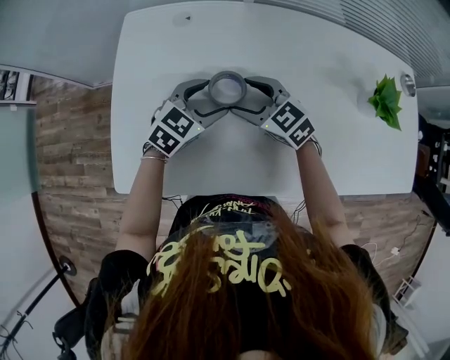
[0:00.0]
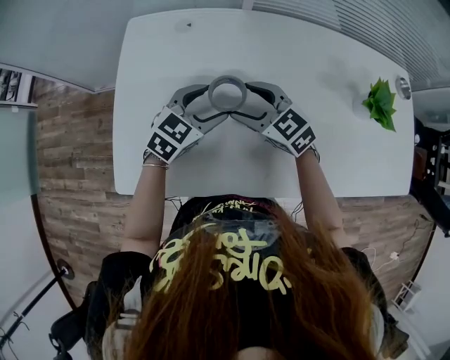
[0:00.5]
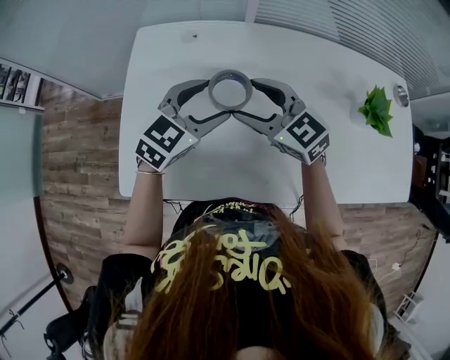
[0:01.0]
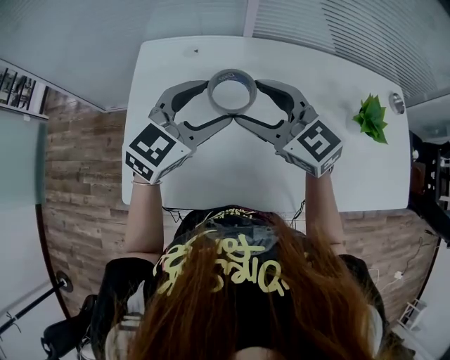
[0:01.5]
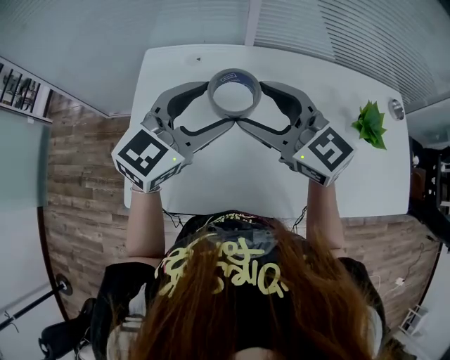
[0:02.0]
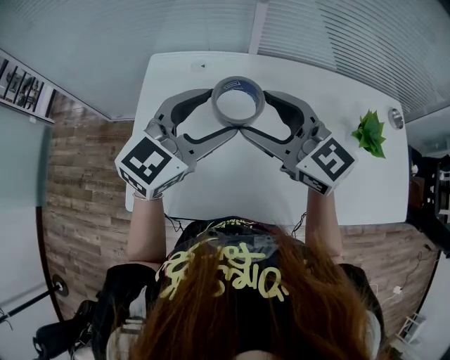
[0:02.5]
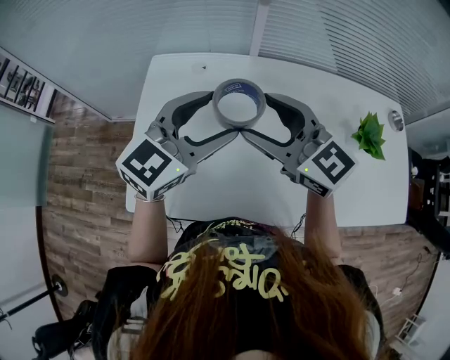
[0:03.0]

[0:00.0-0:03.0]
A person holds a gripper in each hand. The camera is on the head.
0:00.0 to 0:01.5: The two grippers go approximately 20 cm upward.
0:01.5 to 0:03.0: The two grippers go approximately 5 cm upward.

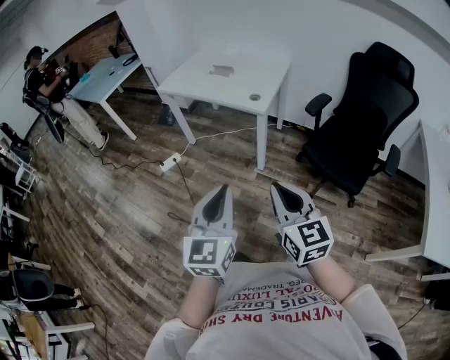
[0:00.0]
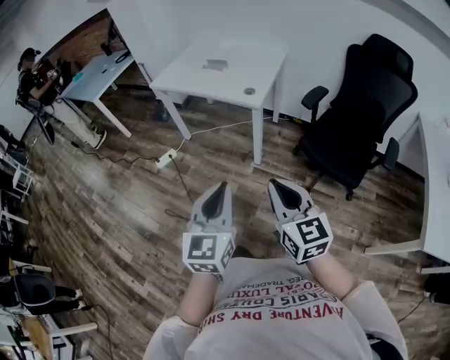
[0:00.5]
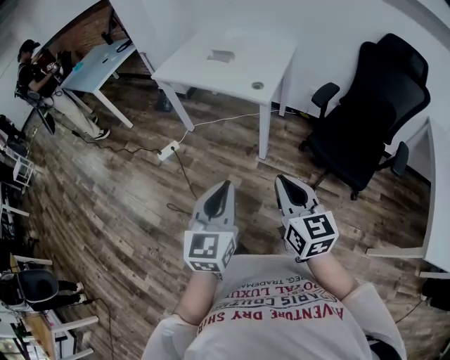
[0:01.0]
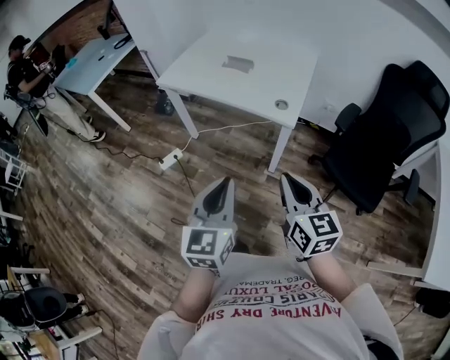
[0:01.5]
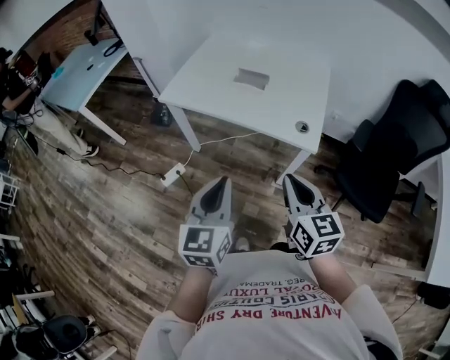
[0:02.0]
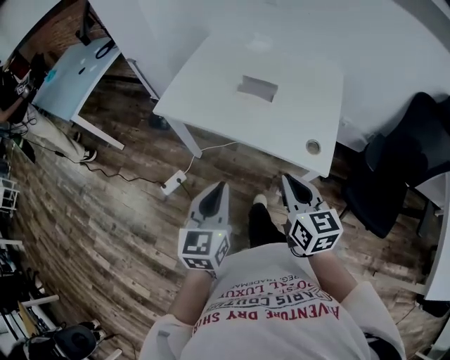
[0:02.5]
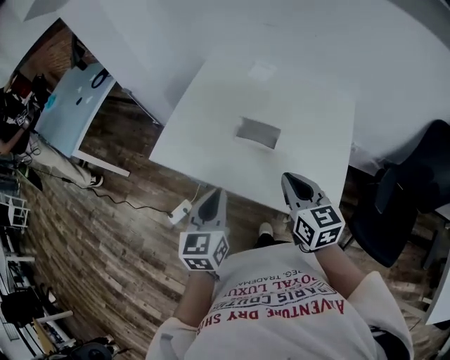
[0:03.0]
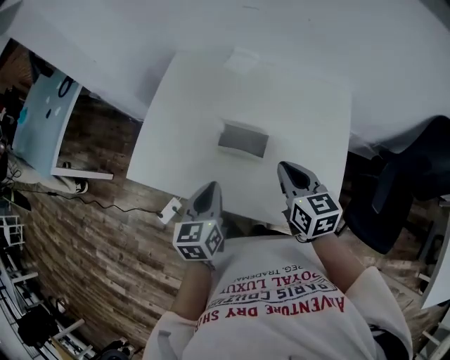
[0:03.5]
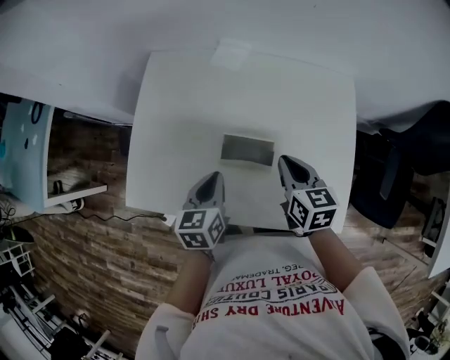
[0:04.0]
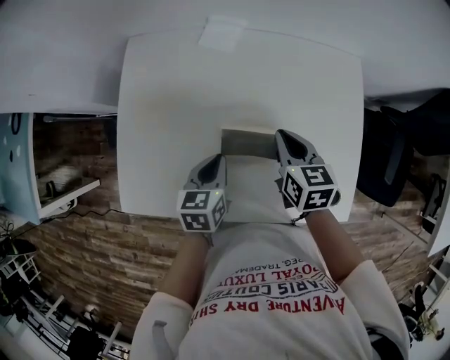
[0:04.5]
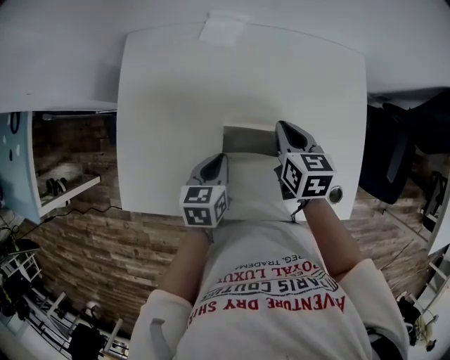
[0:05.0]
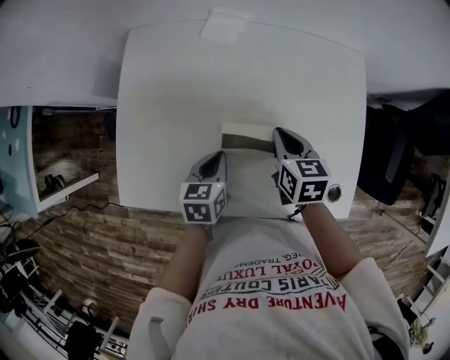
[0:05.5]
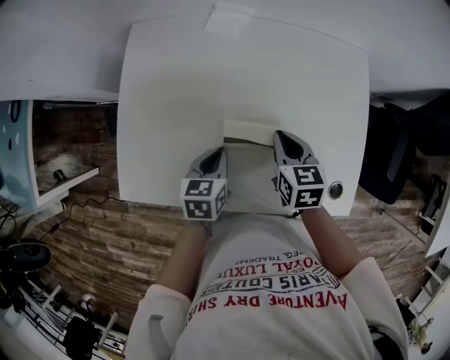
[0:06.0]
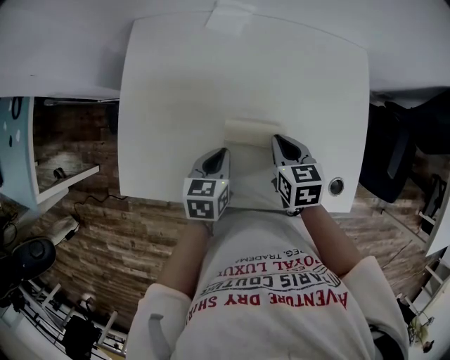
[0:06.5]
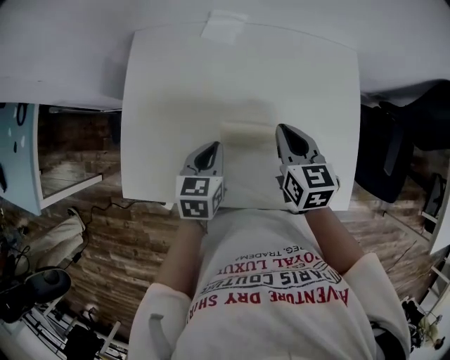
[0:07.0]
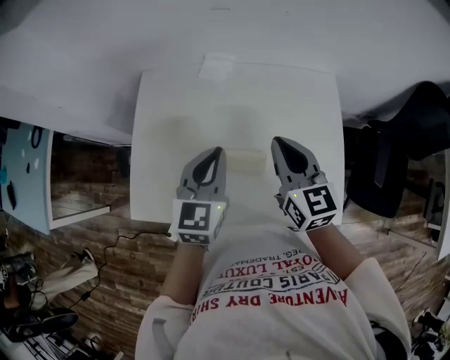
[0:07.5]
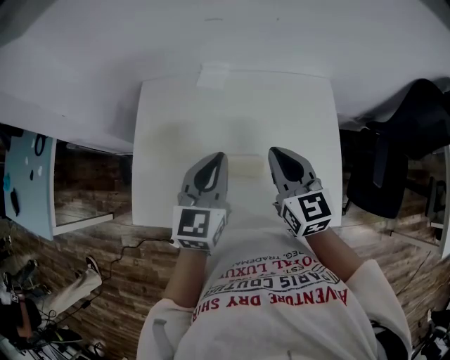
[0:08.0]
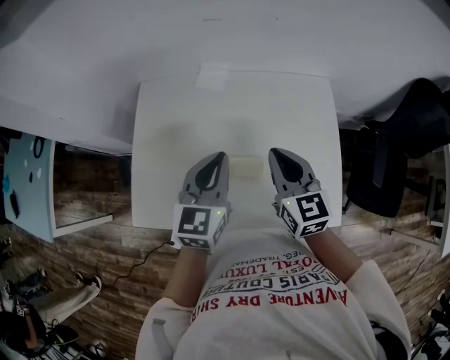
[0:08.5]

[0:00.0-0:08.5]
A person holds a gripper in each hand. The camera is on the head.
0:00.0 to 0:02.0: The pair of grippers is taken forward and to the left, some 40 cm.
0:02.0 to 0:04.0: Both grippers are carried forward, some 50 cm. The left gripper swivels some 30 degrees. Meanwhile the right gripper rotates roughly 20 degrees.
0:04.0 to 0:06.5: Both grippers travel together downward, roughly 10 cm.
0:06.5 to 0:08.5: The two grippers go approximately 20 cm upward. The right gripper swivels approximately 30 degrees. Meanwhile the left gripper swivels about 30 degrees.

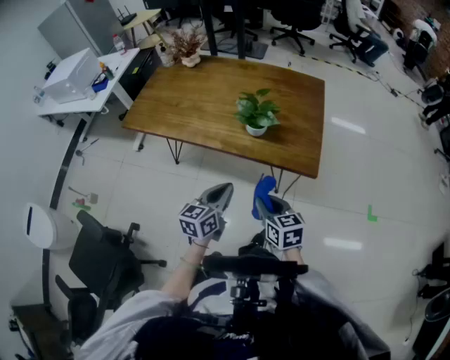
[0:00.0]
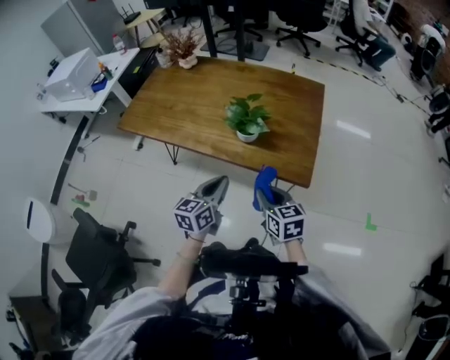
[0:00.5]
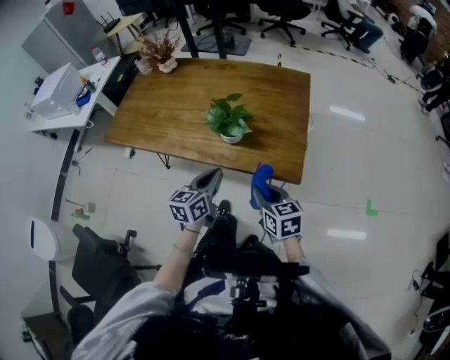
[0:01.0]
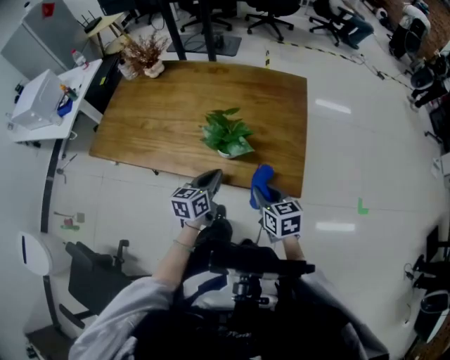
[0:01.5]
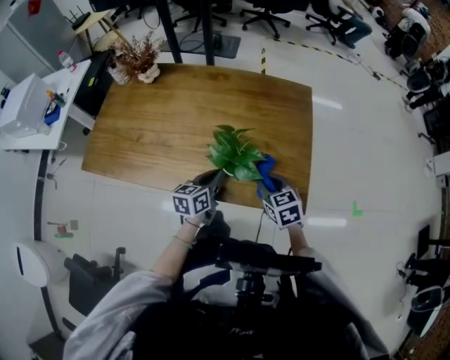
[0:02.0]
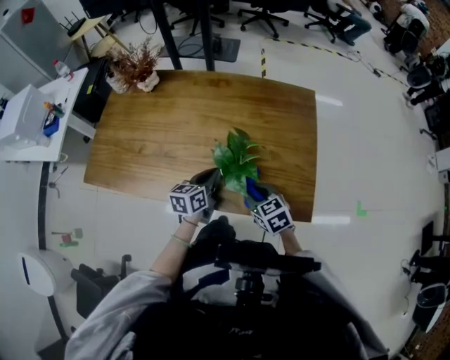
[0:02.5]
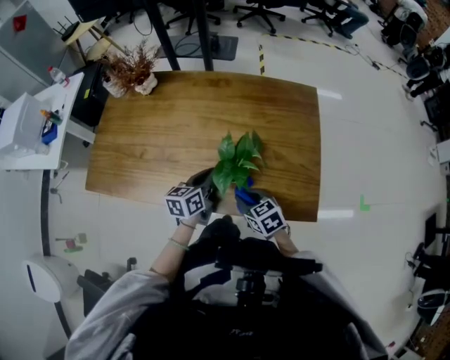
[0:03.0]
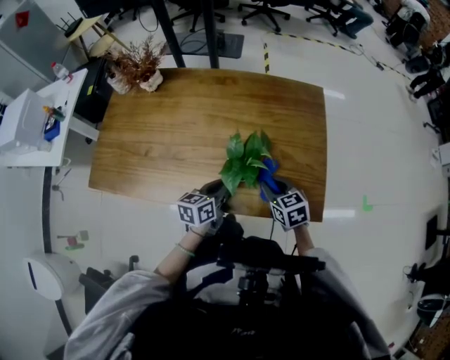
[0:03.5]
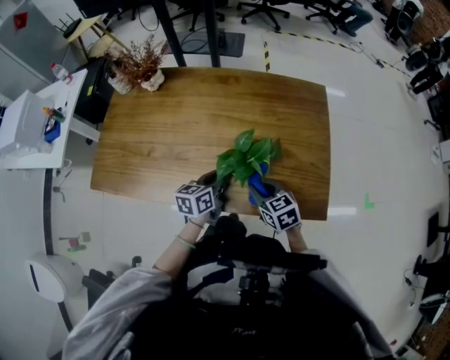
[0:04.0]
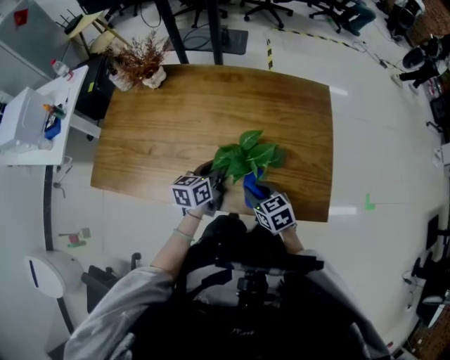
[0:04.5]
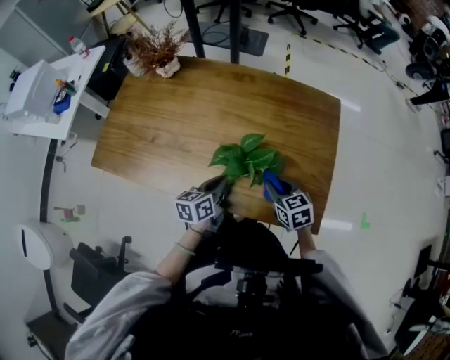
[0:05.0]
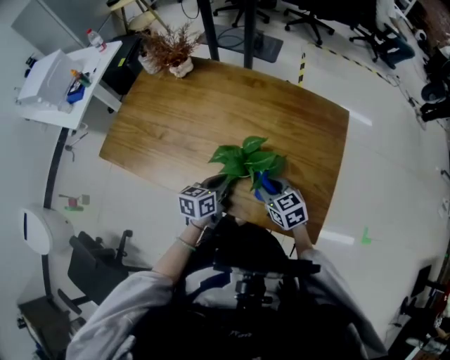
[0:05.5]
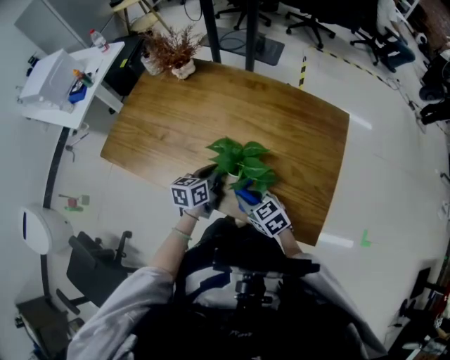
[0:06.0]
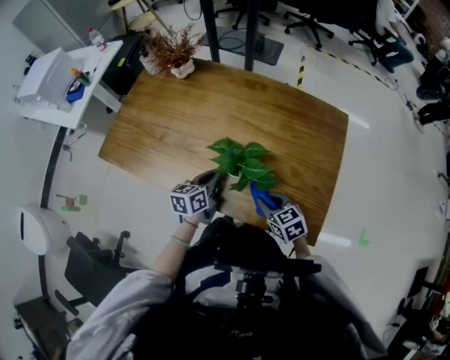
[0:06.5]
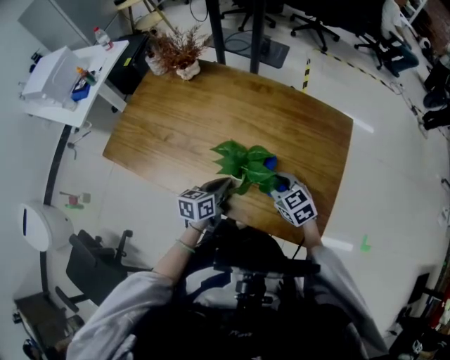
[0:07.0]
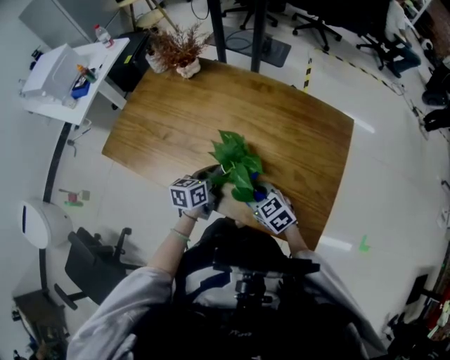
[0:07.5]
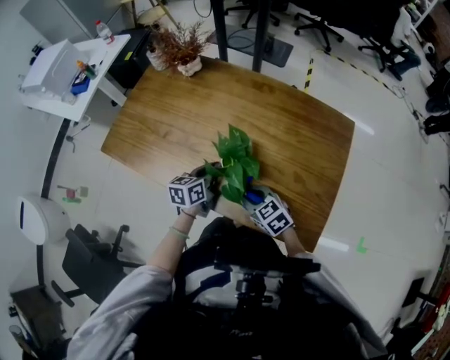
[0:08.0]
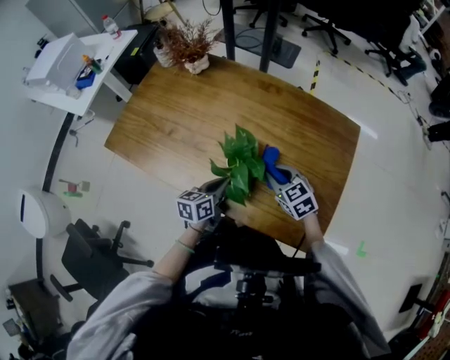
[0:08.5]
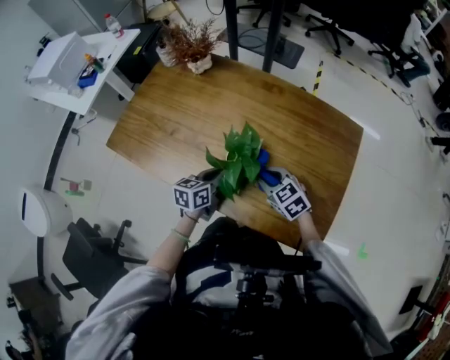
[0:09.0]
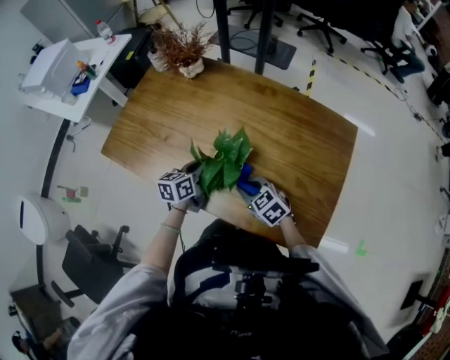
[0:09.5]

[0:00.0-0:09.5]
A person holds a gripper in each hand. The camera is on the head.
0:00.0 to 0:02.0: The grippers both shift forward by some 25 cm.
0:02.0 to 0:04.0: The right gripper swings left and right, approximately 10 cm each way, with 2 reversals. The left gripper shifts roughly 10 cm to the left and forward.
0:04.0 to 0:05.5: The right gripper goes to the right and returns, approximately 5 cm each way.
0:05.5 to 0:07.5: The left gripper moves to the left, roughly 5 cm, while the right gripper goes left and right, about 10 cm each way, reversing 2 times.
0:07.5 to 0:09.5: The left gripper moves about 5 cm; the right gripper travels to the right and back again, approximately 5 cm each way.

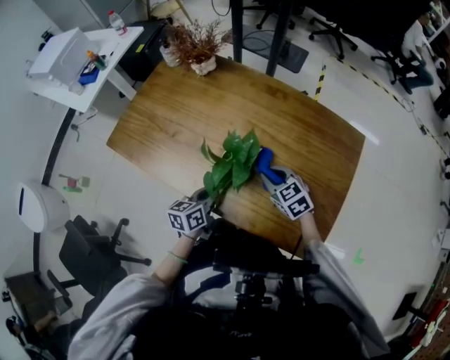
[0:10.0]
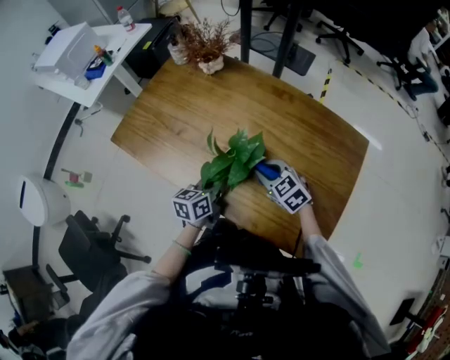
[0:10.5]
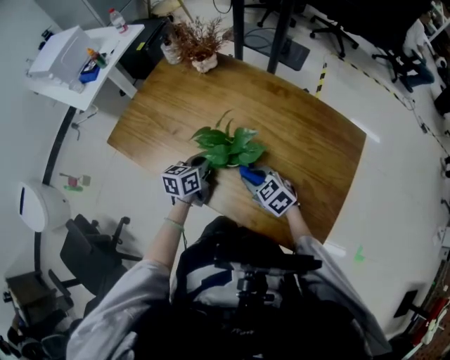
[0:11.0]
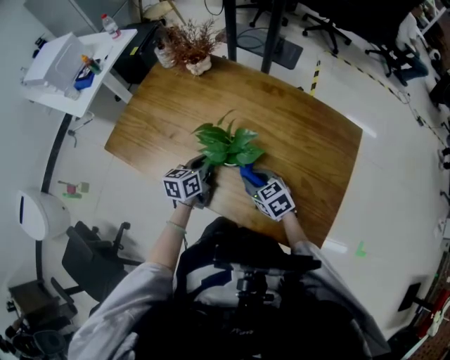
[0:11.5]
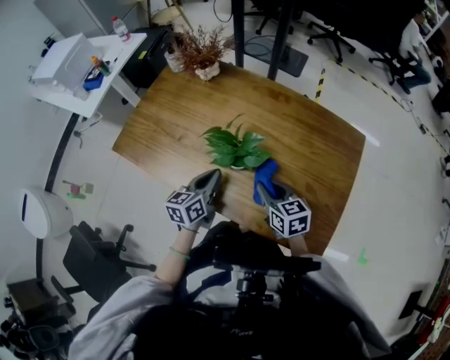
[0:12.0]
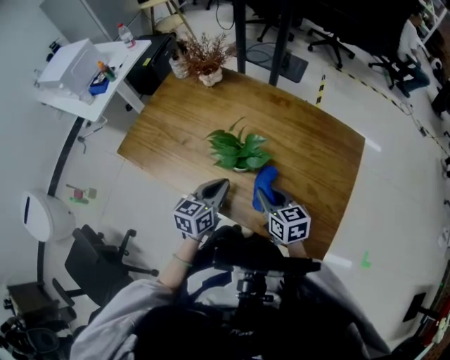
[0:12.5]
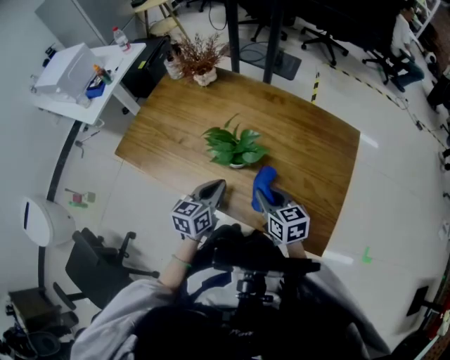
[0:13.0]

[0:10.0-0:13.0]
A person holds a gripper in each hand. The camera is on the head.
0:10.0 to 0:11.5: The right gripper travels to the left by roughly 5 cm, while the left gripper is displaced forward by roughly 10 cm.
0:11.5 to 0:13.0: The right gripper shifts roughly 10 cm upward and backward, and turns by approximately 20 degrees. Meanwhile the left gripper moves backward and upward, roughly 10 cm.

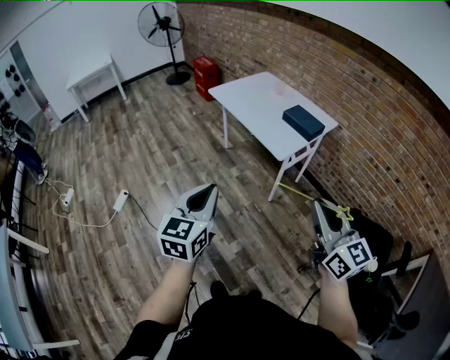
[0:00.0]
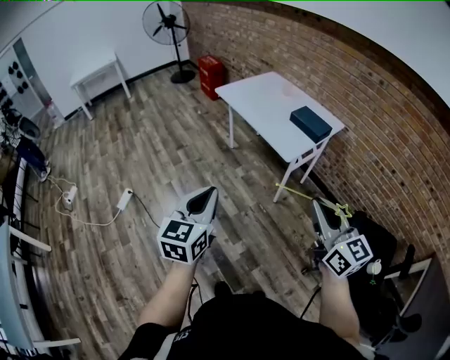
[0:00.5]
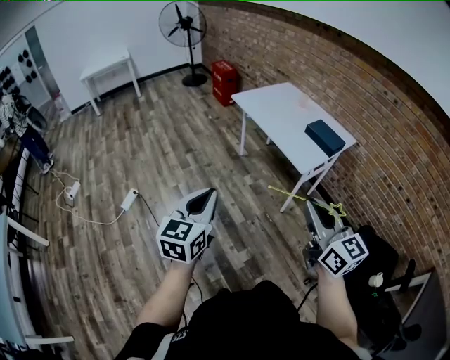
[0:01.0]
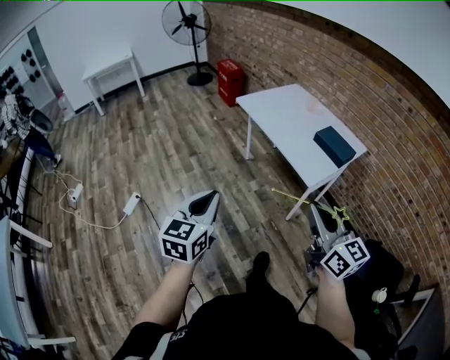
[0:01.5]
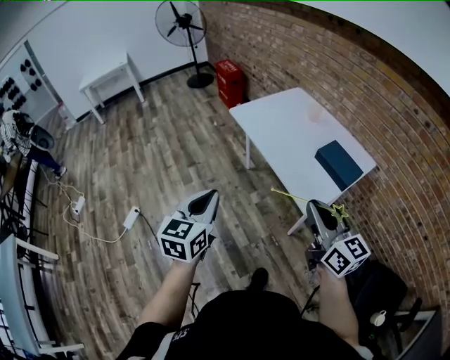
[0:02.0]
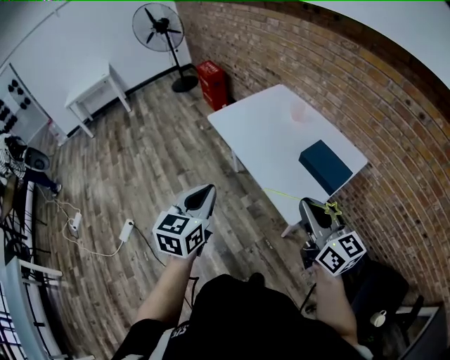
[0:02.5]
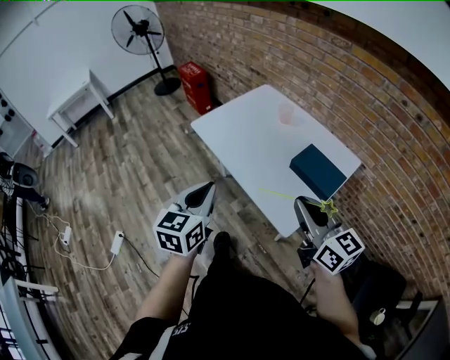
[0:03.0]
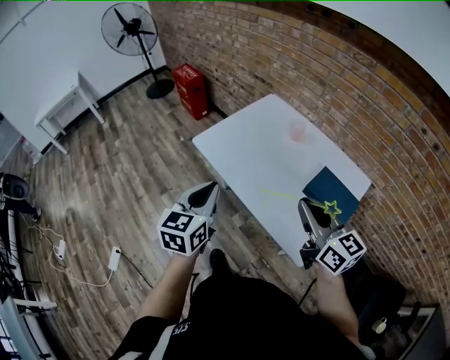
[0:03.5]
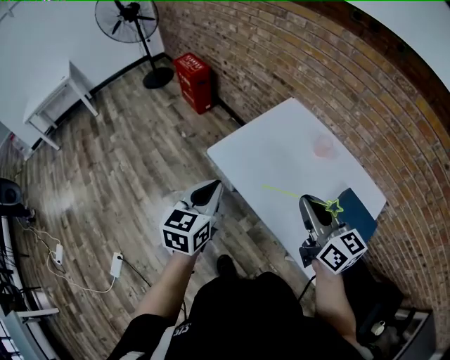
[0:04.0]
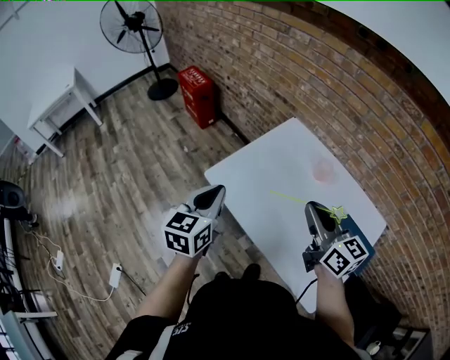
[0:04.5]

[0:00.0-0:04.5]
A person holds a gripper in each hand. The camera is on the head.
0:00.0 to 0:02.0: The two grippers go roughly 30 cm forward.
0:02.0 to 0:04.5: The pair of grippers is taken forward, about 50 cm.
